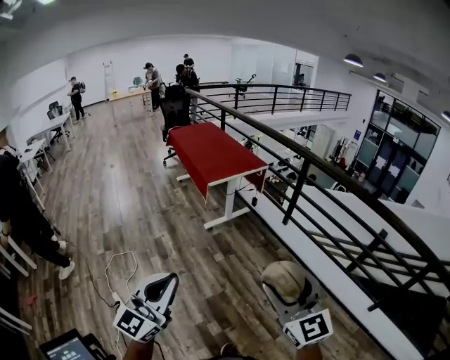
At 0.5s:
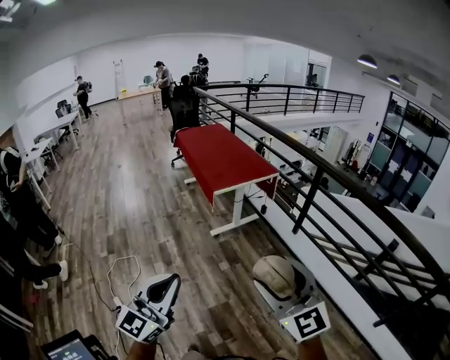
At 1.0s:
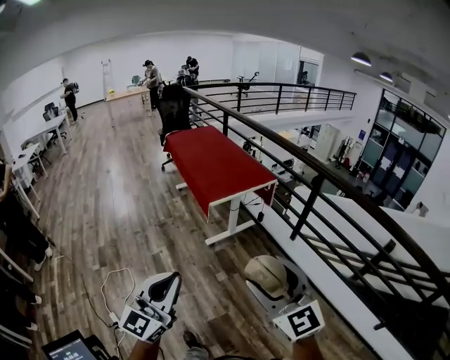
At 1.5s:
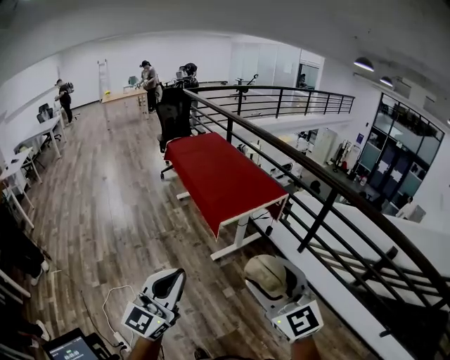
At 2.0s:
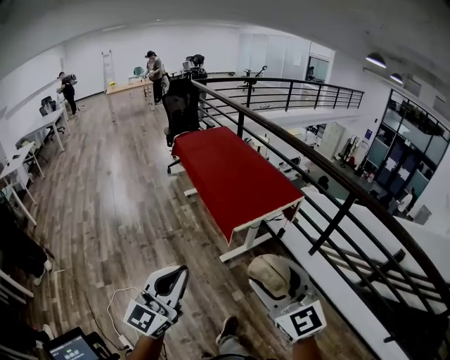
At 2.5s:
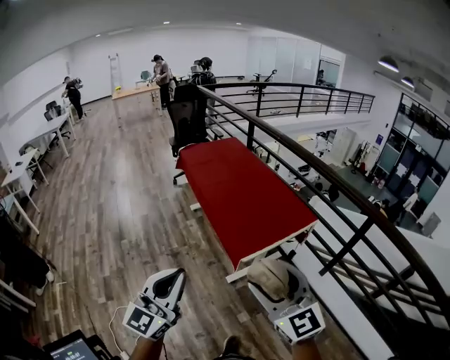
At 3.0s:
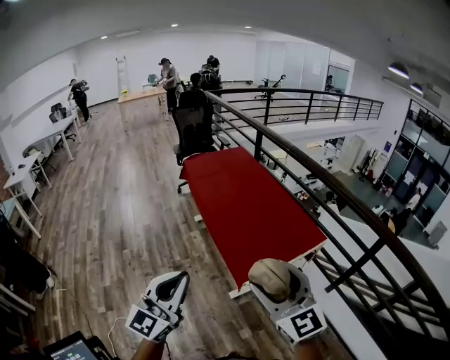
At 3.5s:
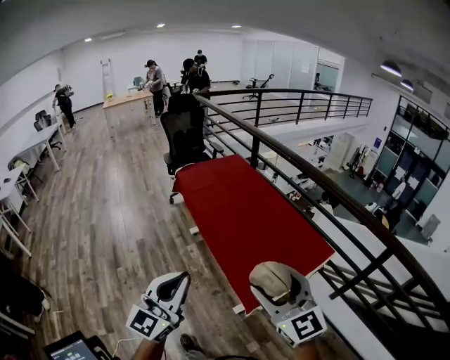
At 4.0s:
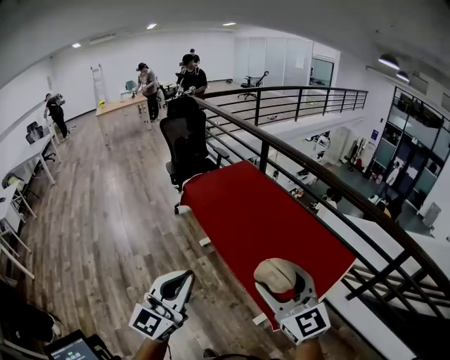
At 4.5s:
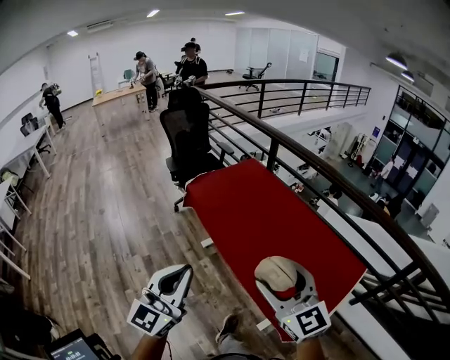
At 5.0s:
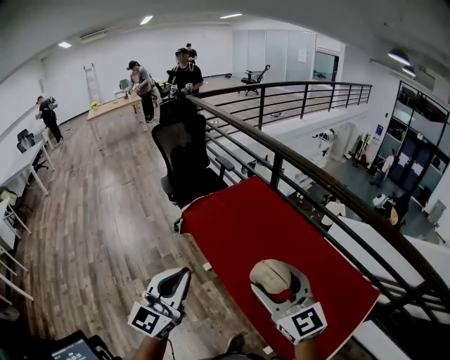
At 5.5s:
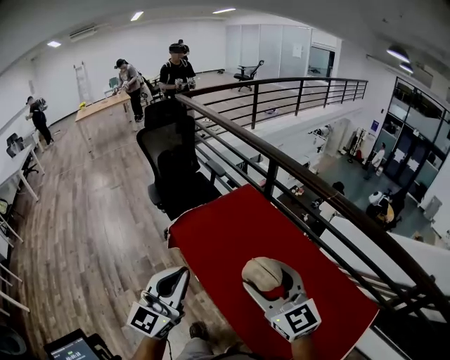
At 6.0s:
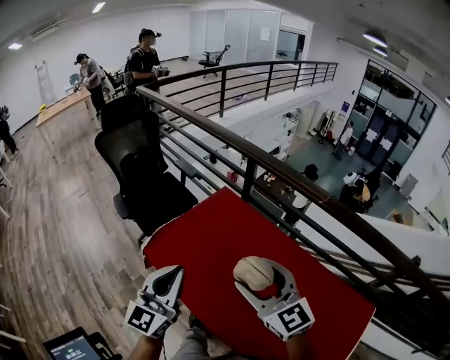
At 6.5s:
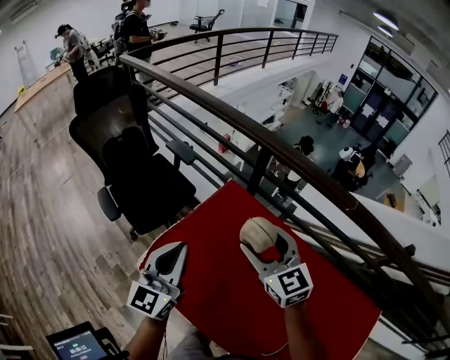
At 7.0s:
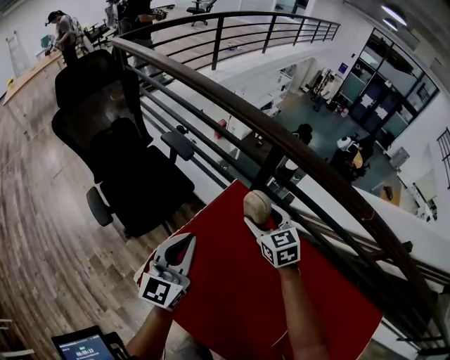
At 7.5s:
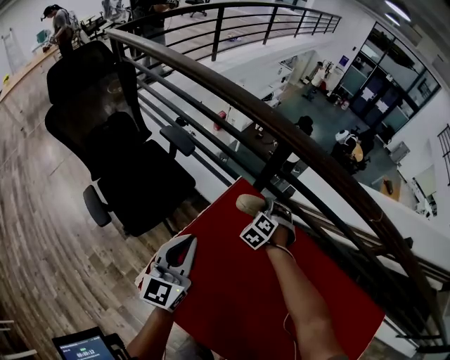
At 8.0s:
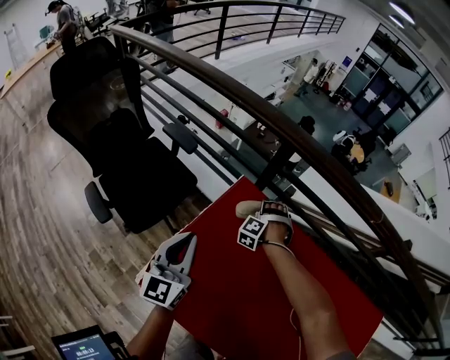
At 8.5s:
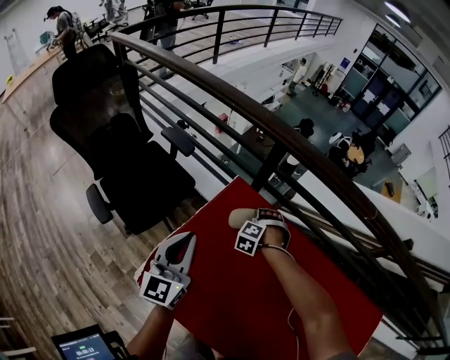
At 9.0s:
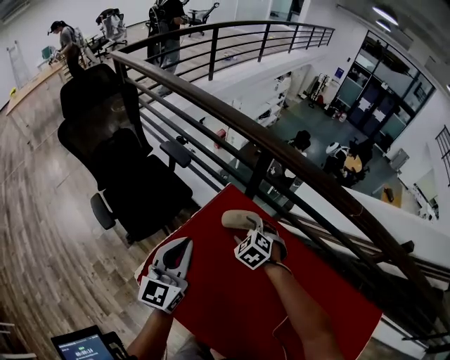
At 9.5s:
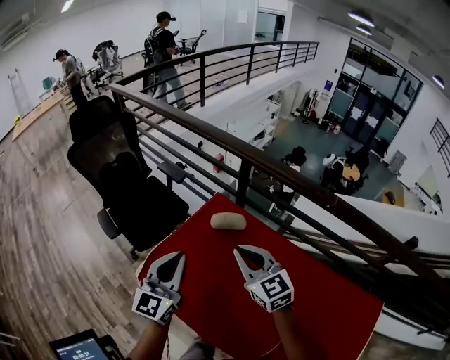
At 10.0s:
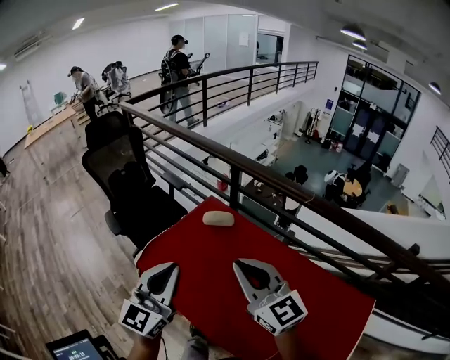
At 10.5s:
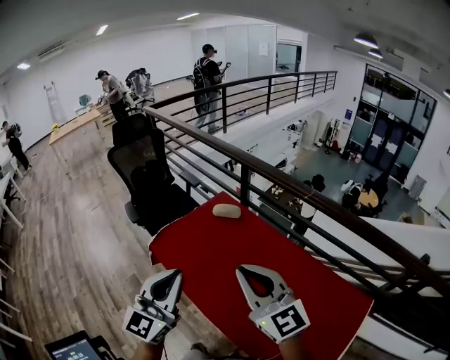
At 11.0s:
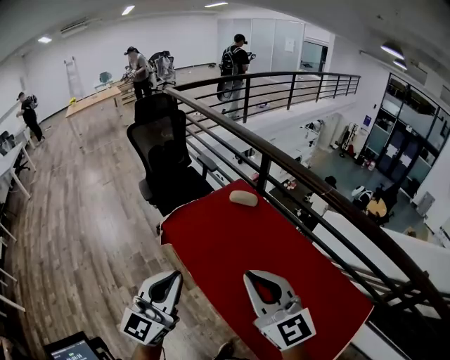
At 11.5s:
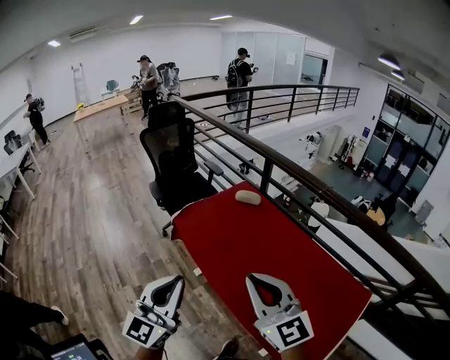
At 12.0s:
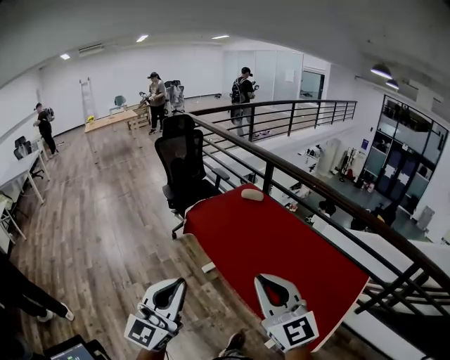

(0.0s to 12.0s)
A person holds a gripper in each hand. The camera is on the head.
0.0s - 2.0s: Both grippers are carried forward, about 60 cm.
2.0s - 4.0s: The two grippers travel together, forward, some 70 cm.
4.0s - 6.0s: Both grippers are carried forward, approximately 70 cm.
6.0s - 8.0s: Both grippers are carried roughly 50 cm. The right gripper angles its fingers downward, by some 50 degrees.
8.0s - 10.0s: The two grippers travel together, some 50 cm. The right gripper tips its fingers upward by some 60 degrees, and closes up.
10.0s - 12.0s: The pair of grippers is taken backward, some 60 cm.

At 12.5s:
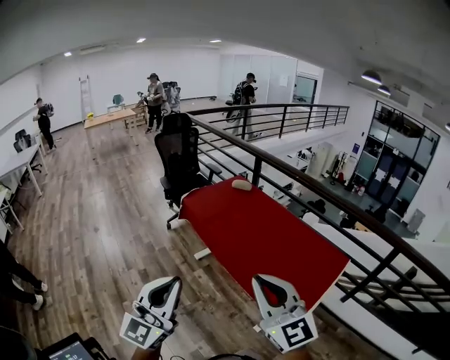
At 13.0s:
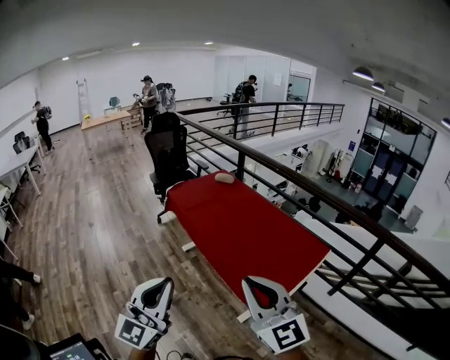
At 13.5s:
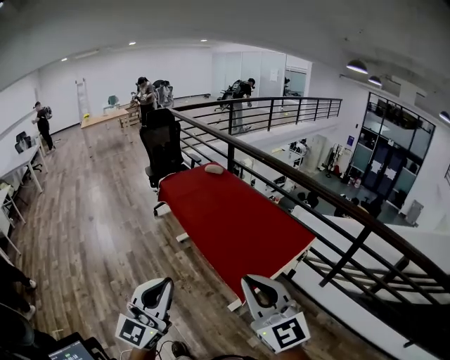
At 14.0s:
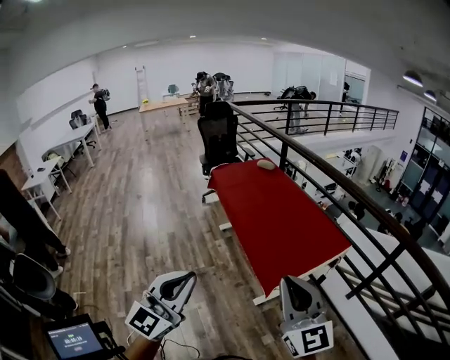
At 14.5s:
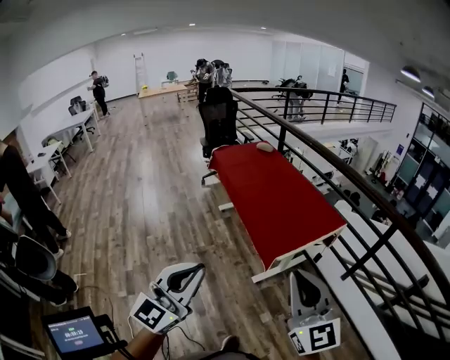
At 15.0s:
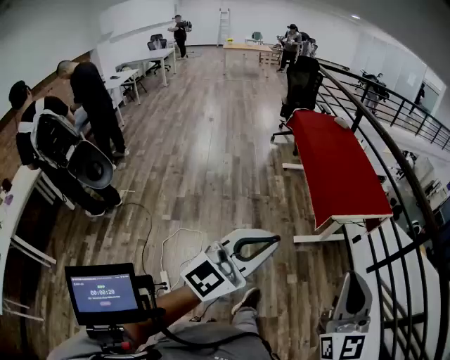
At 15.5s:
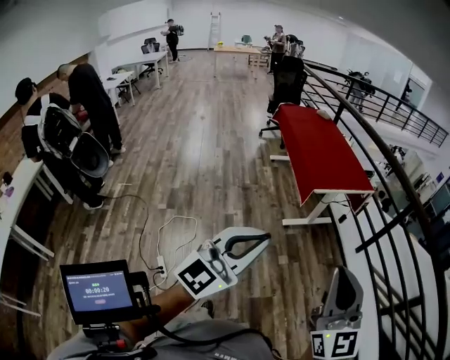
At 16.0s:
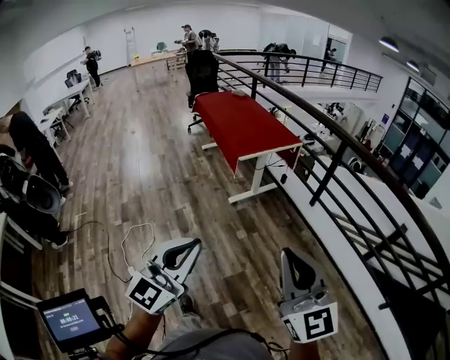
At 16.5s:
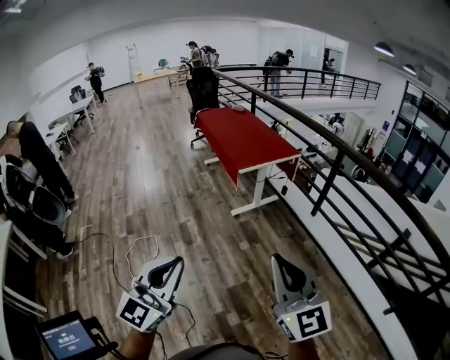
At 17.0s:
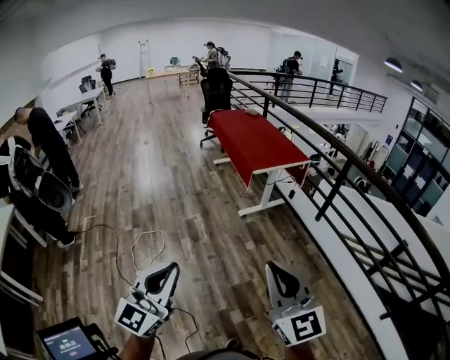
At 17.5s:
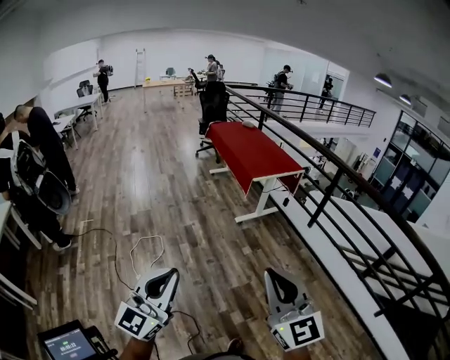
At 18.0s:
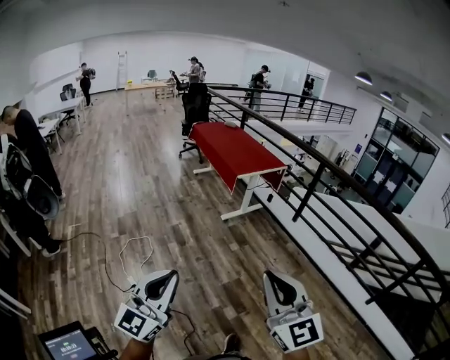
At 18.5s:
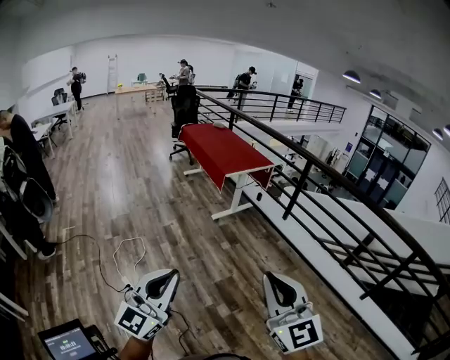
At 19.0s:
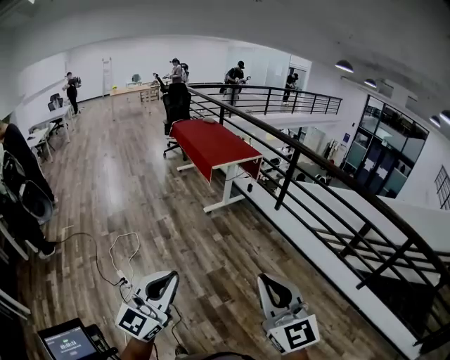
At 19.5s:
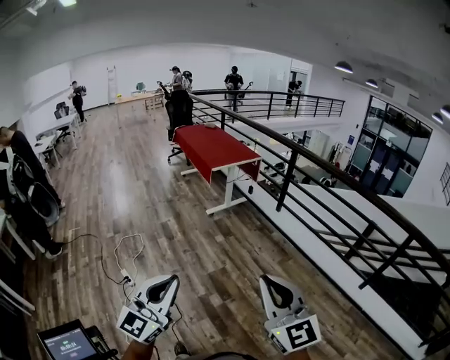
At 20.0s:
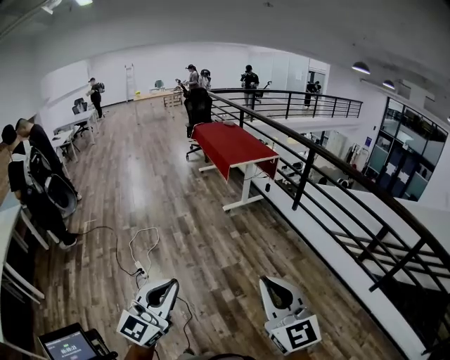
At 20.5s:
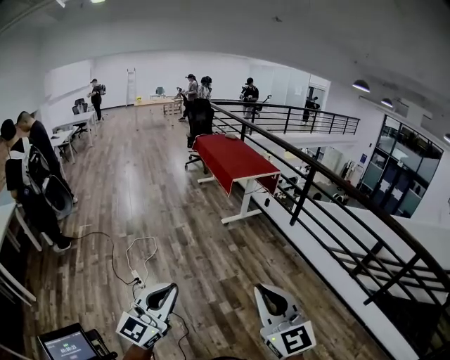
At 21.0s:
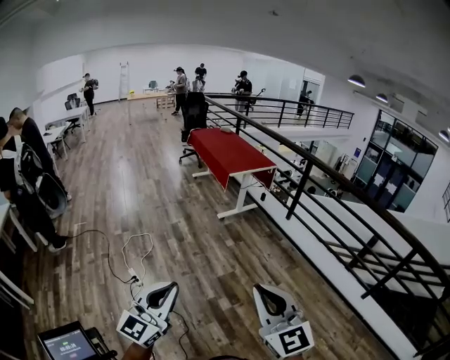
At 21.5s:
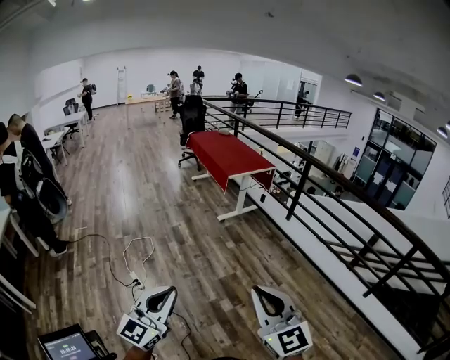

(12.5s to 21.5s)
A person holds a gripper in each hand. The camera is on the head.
12.5s - 14.5s: The two grippers travel together, backward and to the right, roughly 50 cm.
14.5s - 17.0s: Both grippers are carried backward, about 70 cm.
17.0s - 19.5s: The pair of grippers is taken backward and to the right, some 40 cm.
19.5s - 21.5s: The two grippers go roughly 15 cm to the left.

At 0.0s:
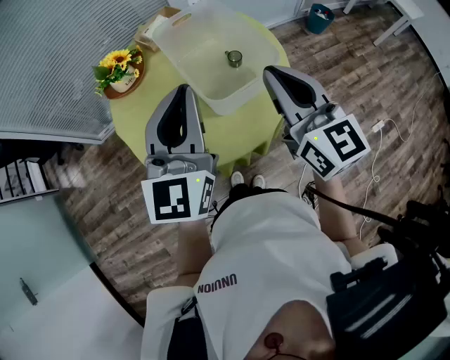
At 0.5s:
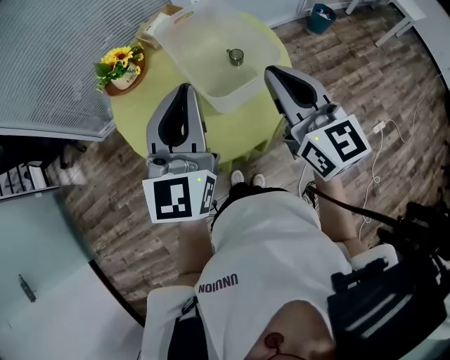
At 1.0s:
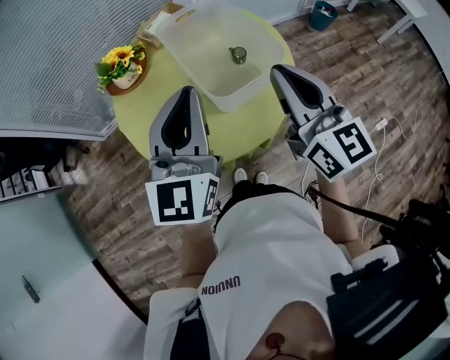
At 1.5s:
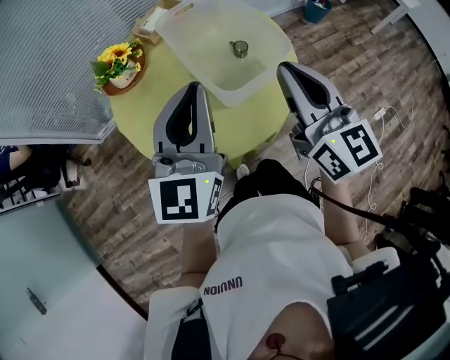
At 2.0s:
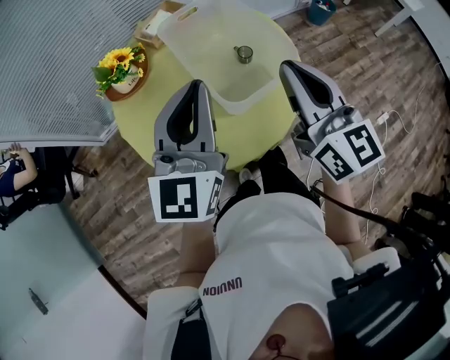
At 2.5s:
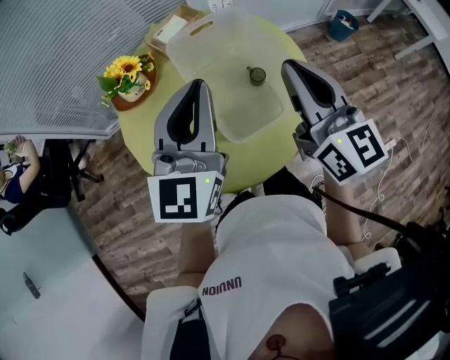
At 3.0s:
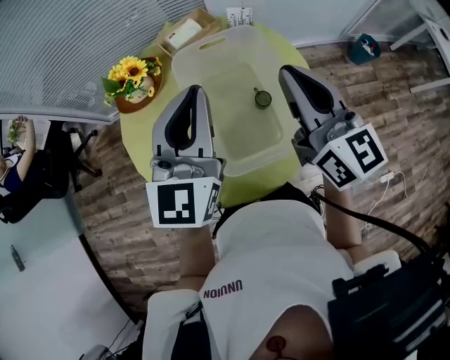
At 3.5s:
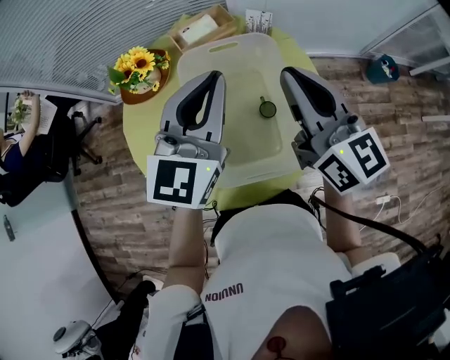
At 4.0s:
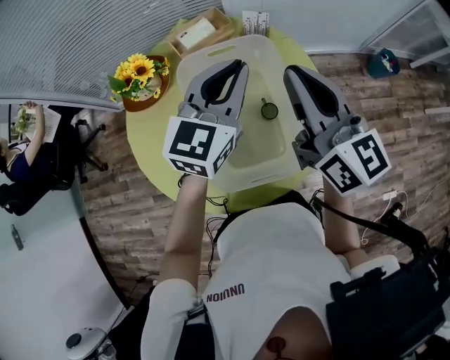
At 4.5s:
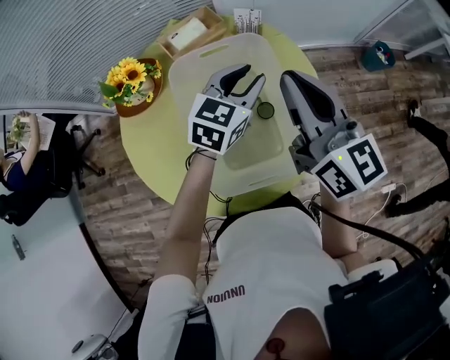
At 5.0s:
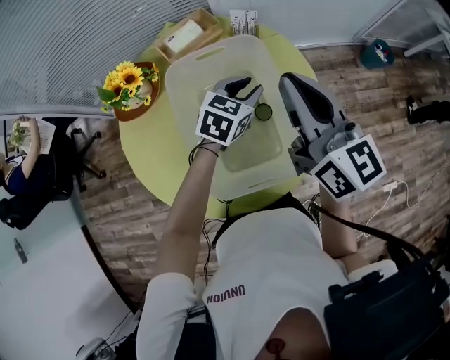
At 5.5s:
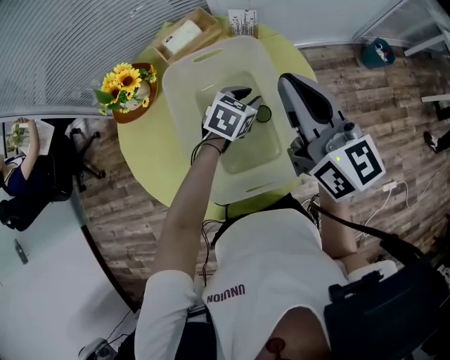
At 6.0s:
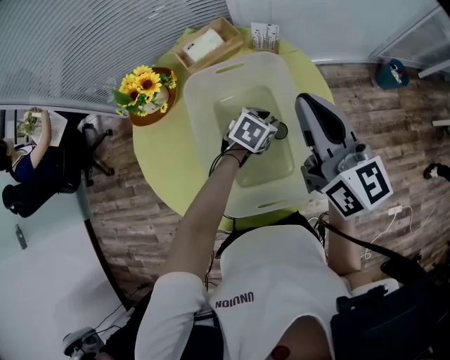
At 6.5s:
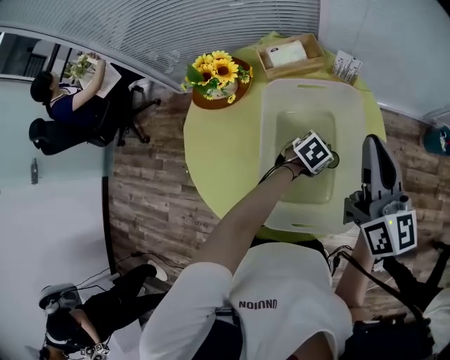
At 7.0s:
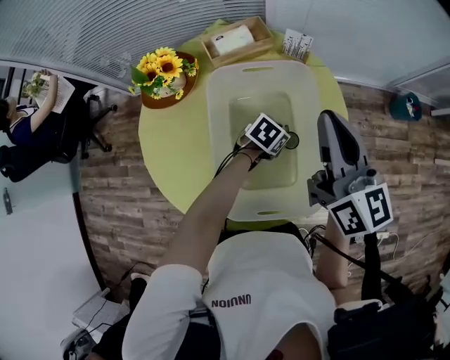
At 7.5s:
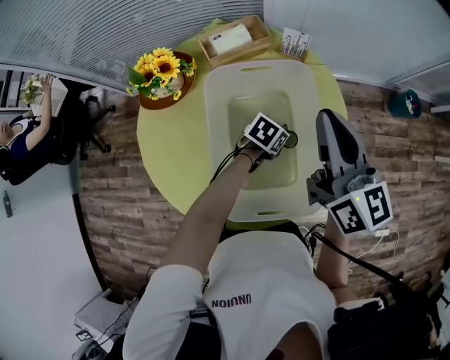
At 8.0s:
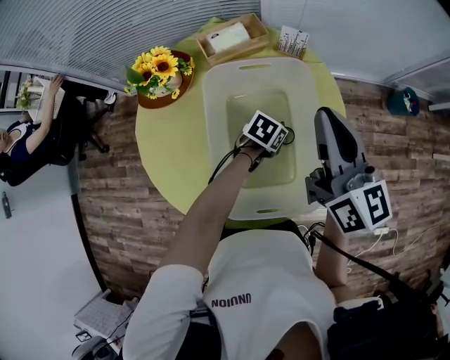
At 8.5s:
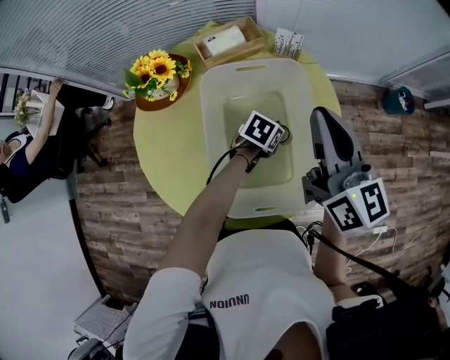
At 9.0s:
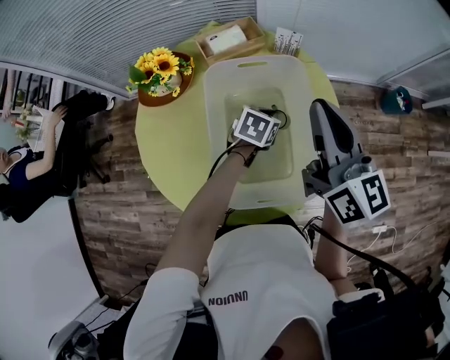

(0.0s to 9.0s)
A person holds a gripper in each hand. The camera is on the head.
0.0s - 2.0s: There are only small adjustments of the grippers.
2.0s - 4.5s: The right gripper shifts about 20 cm forward, and rotates some 20 degrees, while the left gripper is displaced forward, to the right and downward by roughly 30 cm, rotates about 30 degrees, and opens its fingers.
4.5s - 7.0s: The left gripper is displaced downward by about 20 cm, and angles its fingers downward, by roughly 30 degrees.
7.0s - 9.0s: The left gripper travels upward by approximately 5 cm, and closes its fingers.
